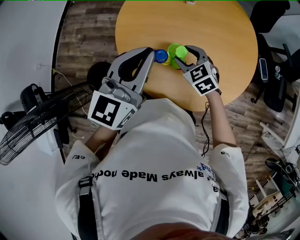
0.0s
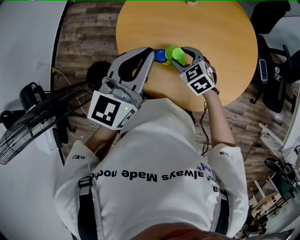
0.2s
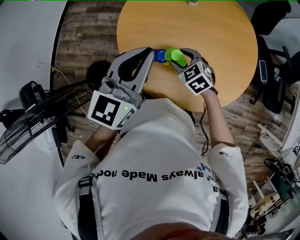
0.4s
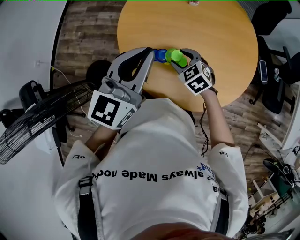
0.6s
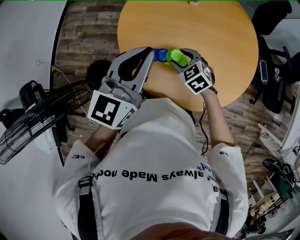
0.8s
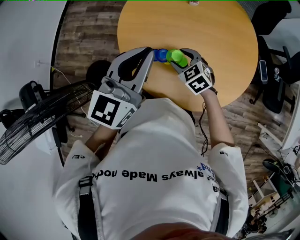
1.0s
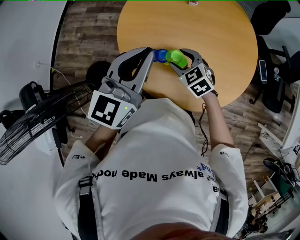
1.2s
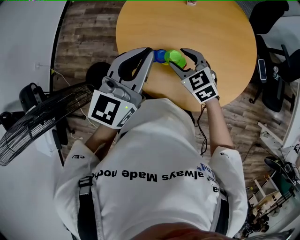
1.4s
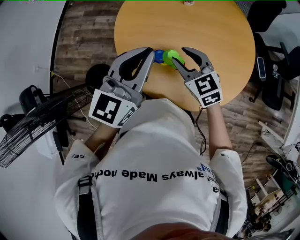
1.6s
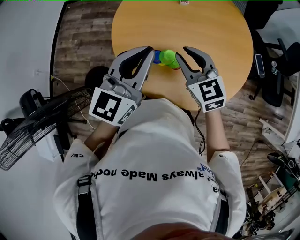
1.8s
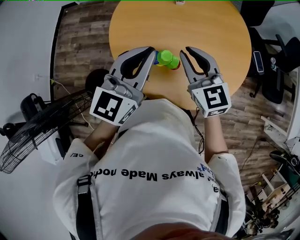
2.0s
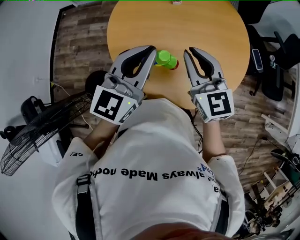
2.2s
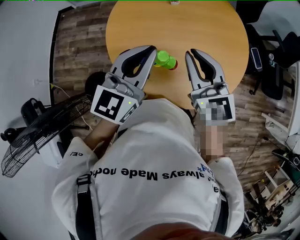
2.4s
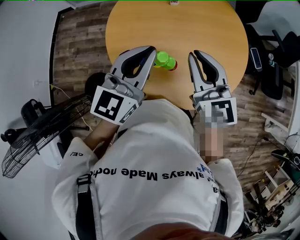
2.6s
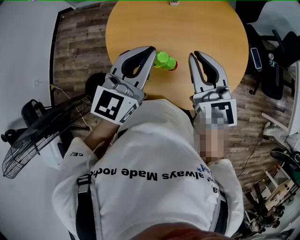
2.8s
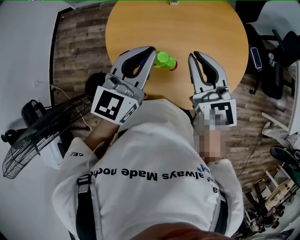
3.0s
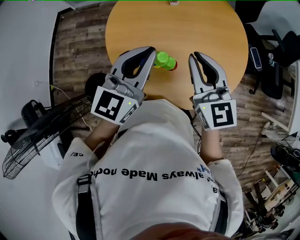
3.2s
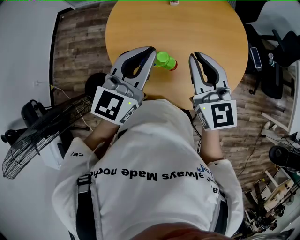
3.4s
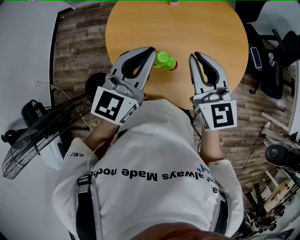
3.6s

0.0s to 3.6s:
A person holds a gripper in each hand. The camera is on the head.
0.0s to 1.8s: The right gripper is displaced upward by roughly 10 cm, rotates approximately 20 degrees, and closes.
1.8s to 3.6s: The right gripper heads upward and to the right, covering about 10 cm, and rotates some 20 degrees.

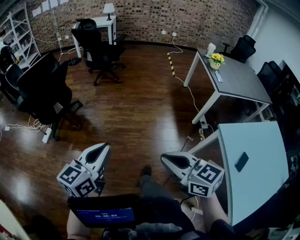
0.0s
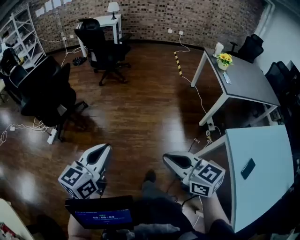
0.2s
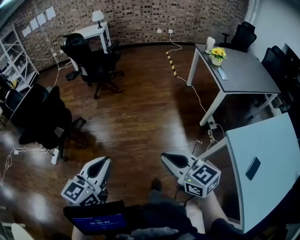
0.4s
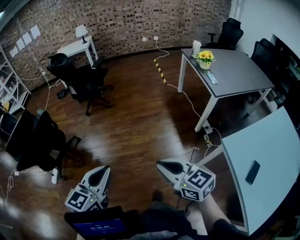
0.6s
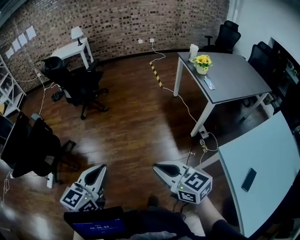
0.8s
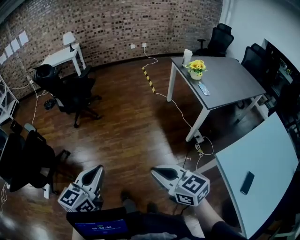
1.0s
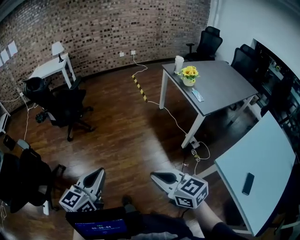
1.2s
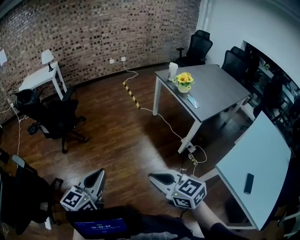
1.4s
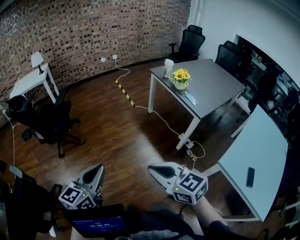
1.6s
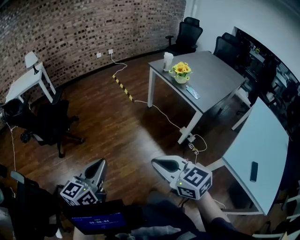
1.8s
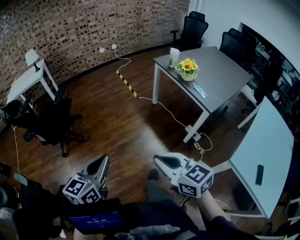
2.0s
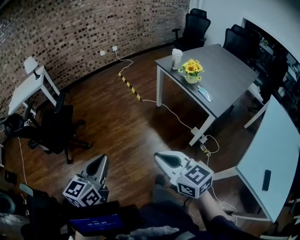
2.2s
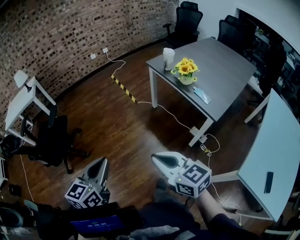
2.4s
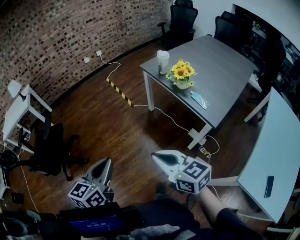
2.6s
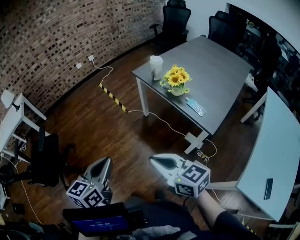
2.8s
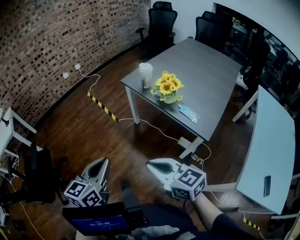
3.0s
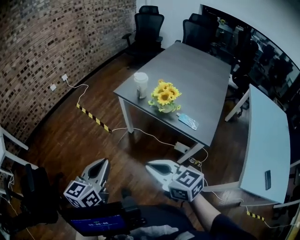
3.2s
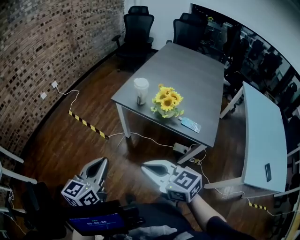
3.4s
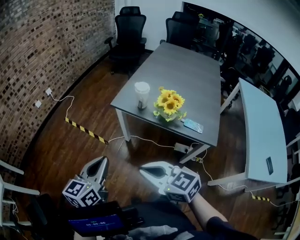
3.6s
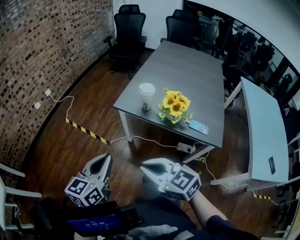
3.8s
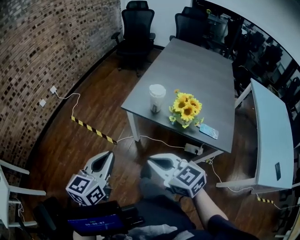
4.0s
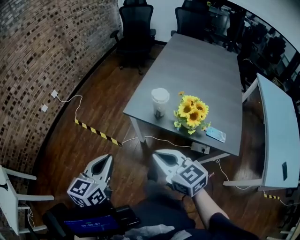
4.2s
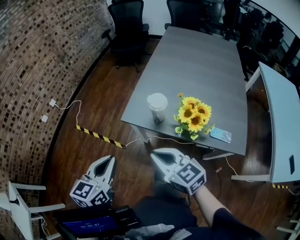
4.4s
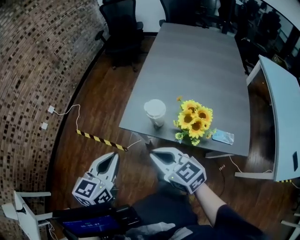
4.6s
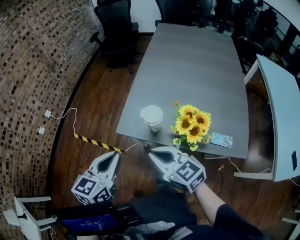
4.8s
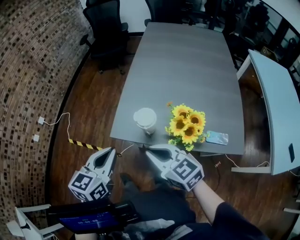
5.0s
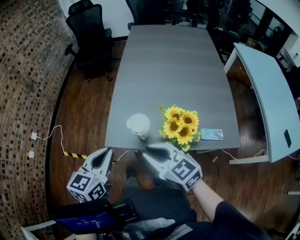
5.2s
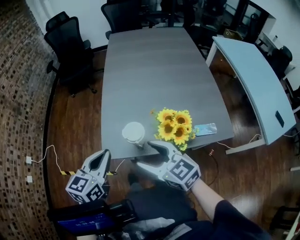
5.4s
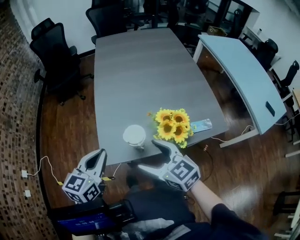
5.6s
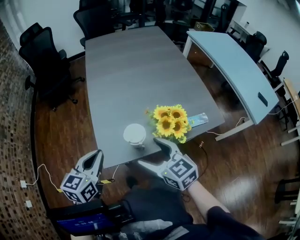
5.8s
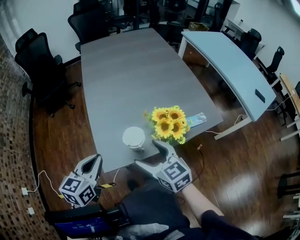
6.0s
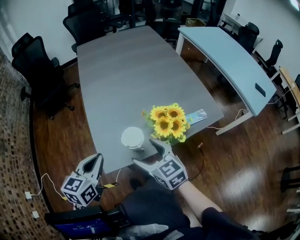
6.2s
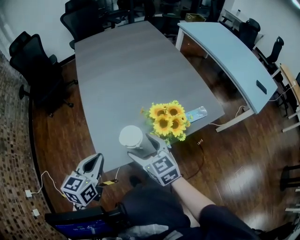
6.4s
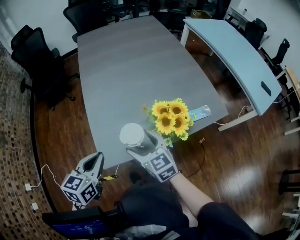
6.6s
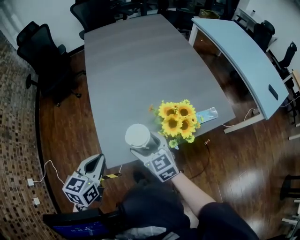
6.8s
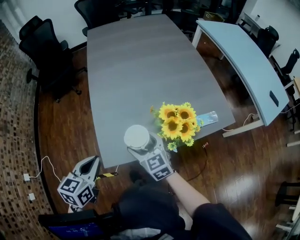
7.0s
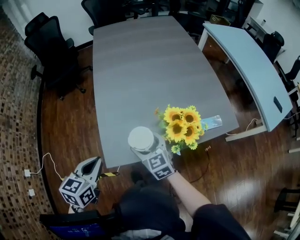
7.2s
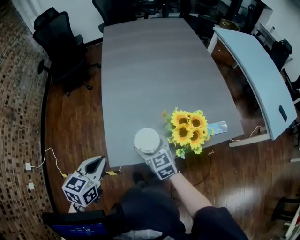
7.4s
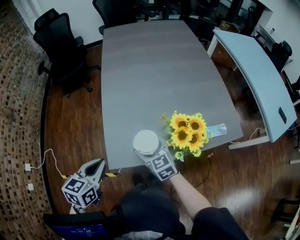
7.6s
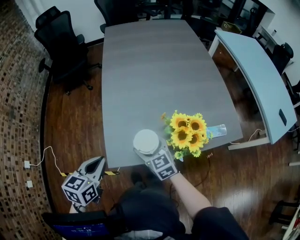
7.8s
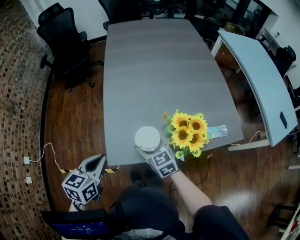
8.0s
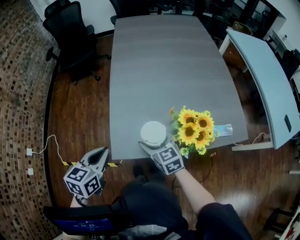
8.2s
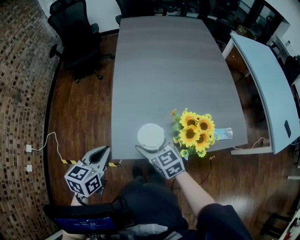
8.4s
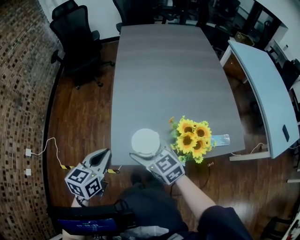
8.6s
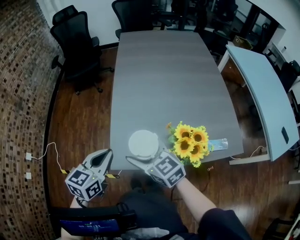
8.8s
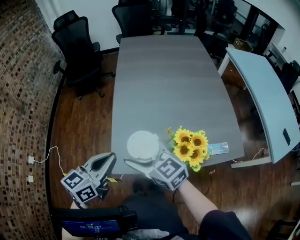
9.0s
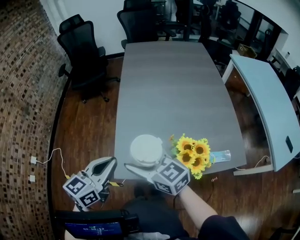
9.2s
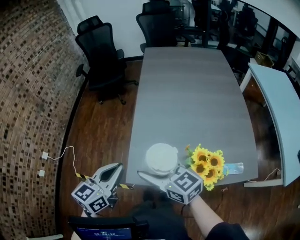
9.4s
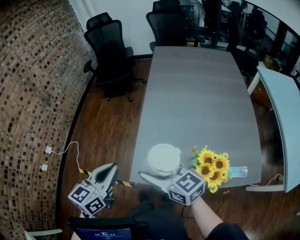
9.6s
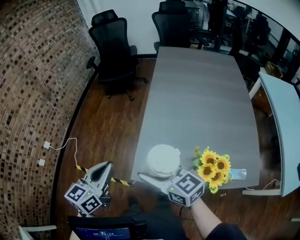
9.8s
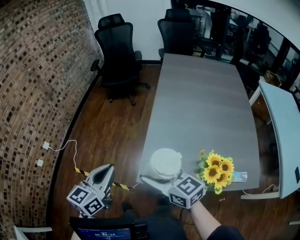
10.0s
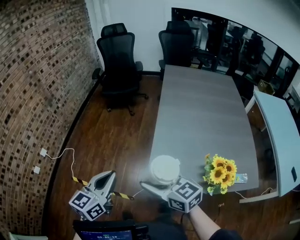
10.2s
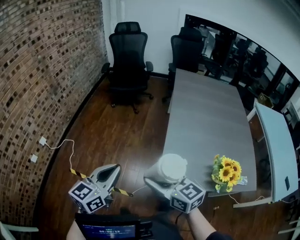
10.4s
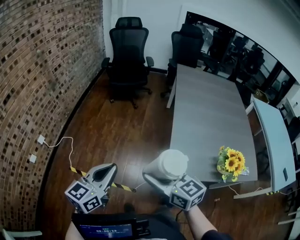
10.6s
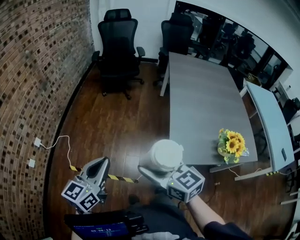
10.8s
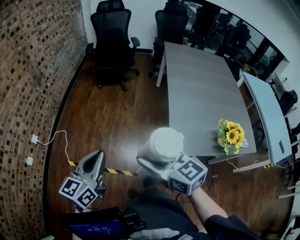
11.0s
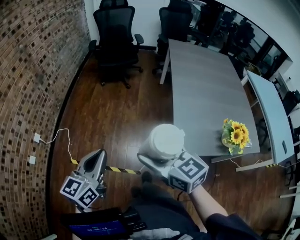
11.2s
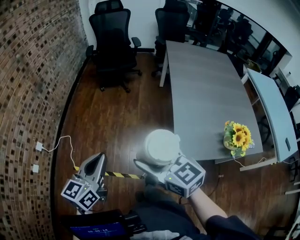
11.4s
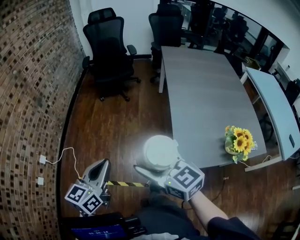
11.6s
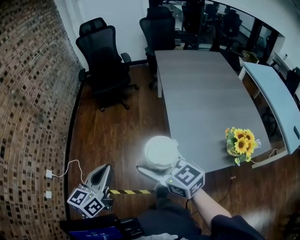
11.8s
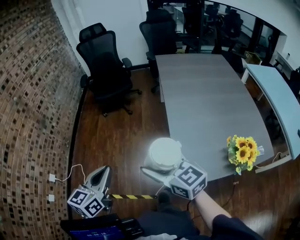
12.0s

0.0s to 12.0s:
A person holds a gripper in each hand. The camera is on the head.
0.0s to 1.6s: The pair of grippers is taken about 50 cm. The right gripper changes its angle by roughly 30 degrees. Meanwhile the left gripper turns by roughly 30 degrees.
1.6s to 3.0s: Both grippers are carried forward, some 50 cm. The right gripper rotates approximately 20 degrees.
3.0s to 4.4s: The pair of grippers is taken forward, about 40 cm. The left gripper swivels roughly 20 degrees; the right gripper rotates roughly 20 degrees.
4.4s to 6.0s: The right gripper shifts by about 15 cm, changes its angle by roughly 50 degrees, and opens; the left gripper moves approximately 25 cm, and turns by about 40 degrees.
6.0s to 7.6s: The left gripper ends up roughly 5 cm from where it was. The right gripper moves downward and forward, roughly 15 cm.
7.6s to 9.0s: The left gripper is displaced upward and to the right by about 10 cm, and changes its angle by about 20 degrees; the right gripper moves upward, some 15 cm, and turns by approximately 20 degrees.
9.0s to 10.4s: Both grippers travel together to the left, approximately 20 cm. The left gripper changes its angle by roughly 20 degrees.
10.4s to 12.0s: The right gripper travels forward by approximately 10 cm, and reaches some 15 cm to the left, then returns. The left gripper moves forward and to the left, approximately 15 cm.

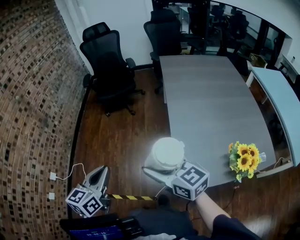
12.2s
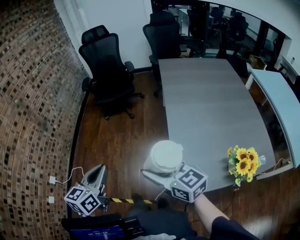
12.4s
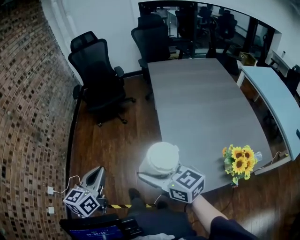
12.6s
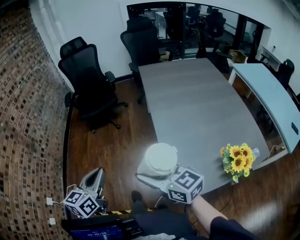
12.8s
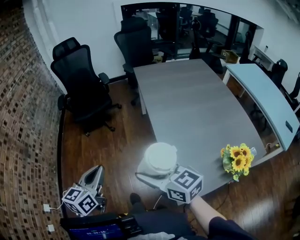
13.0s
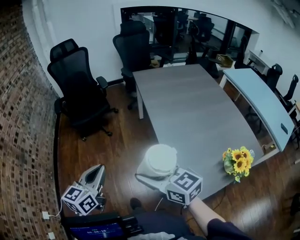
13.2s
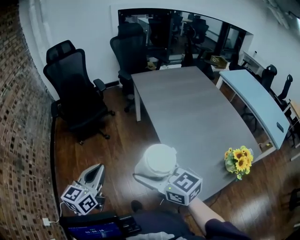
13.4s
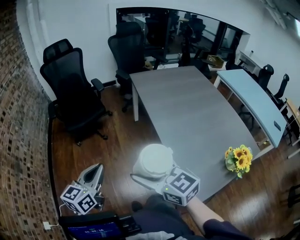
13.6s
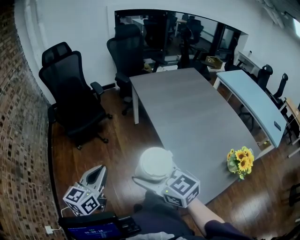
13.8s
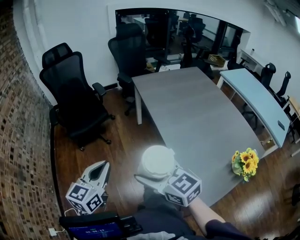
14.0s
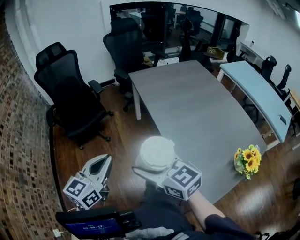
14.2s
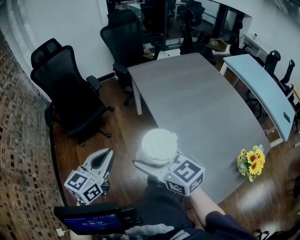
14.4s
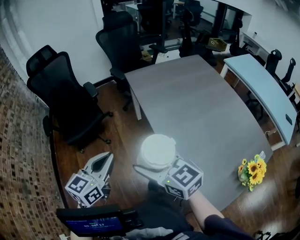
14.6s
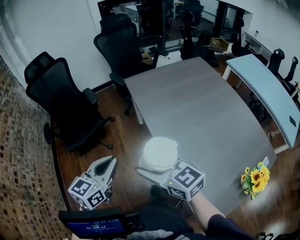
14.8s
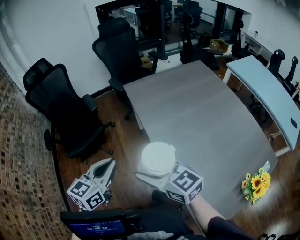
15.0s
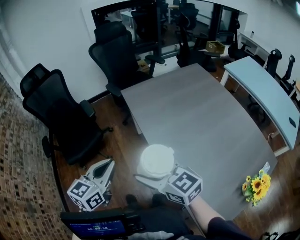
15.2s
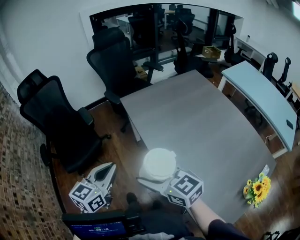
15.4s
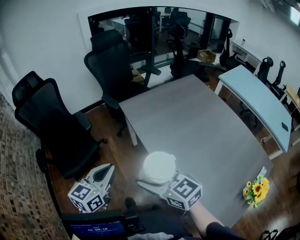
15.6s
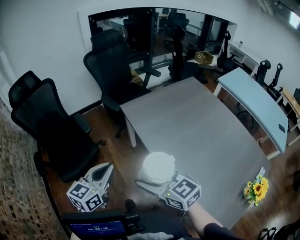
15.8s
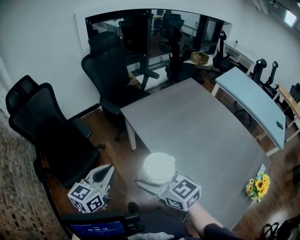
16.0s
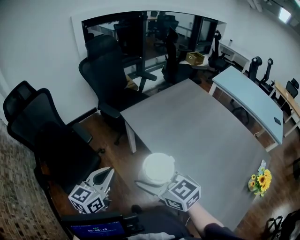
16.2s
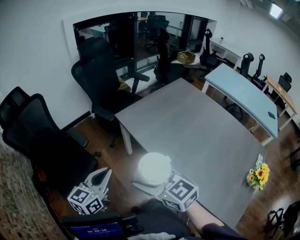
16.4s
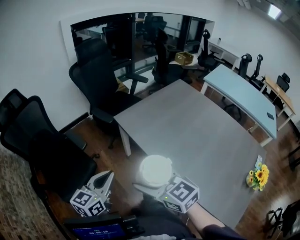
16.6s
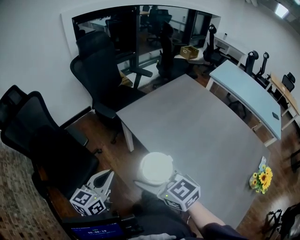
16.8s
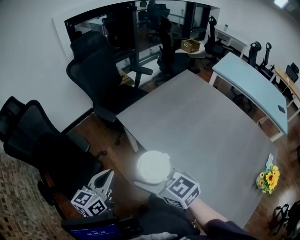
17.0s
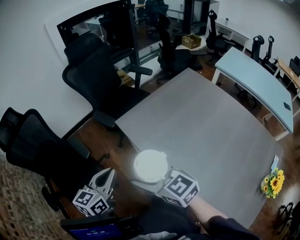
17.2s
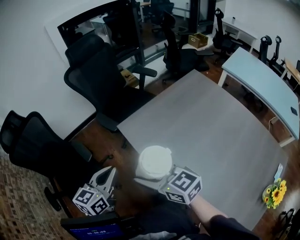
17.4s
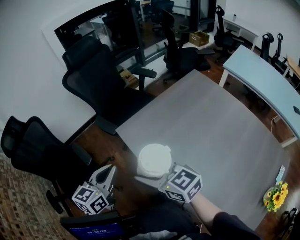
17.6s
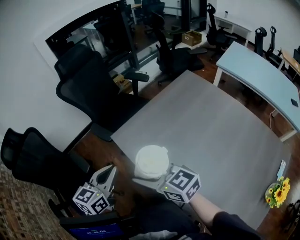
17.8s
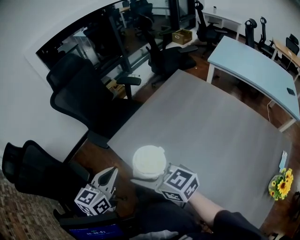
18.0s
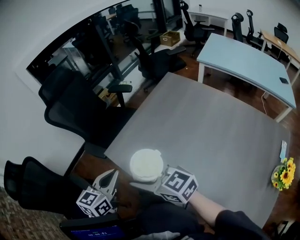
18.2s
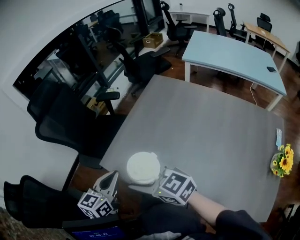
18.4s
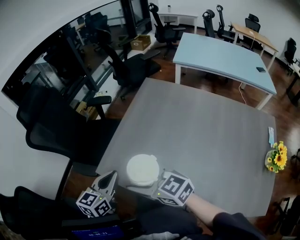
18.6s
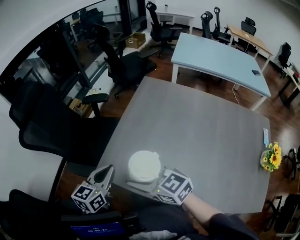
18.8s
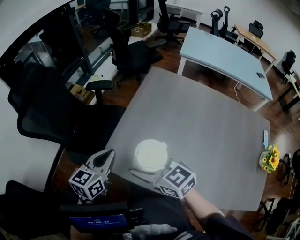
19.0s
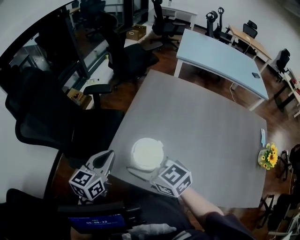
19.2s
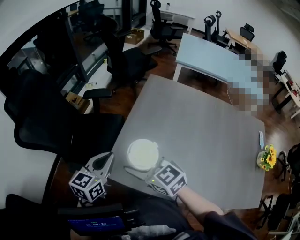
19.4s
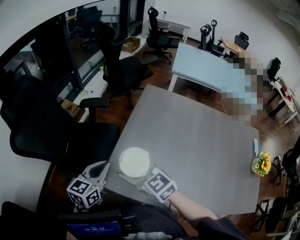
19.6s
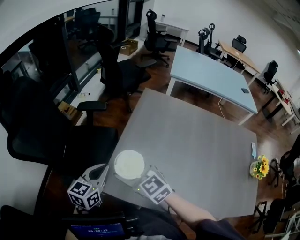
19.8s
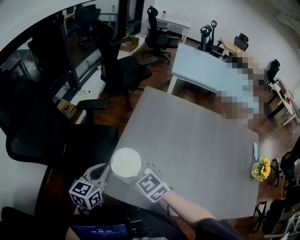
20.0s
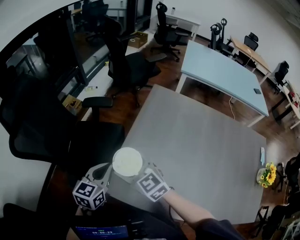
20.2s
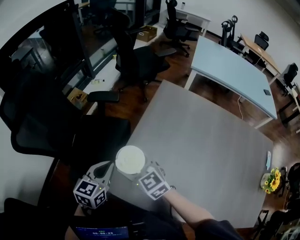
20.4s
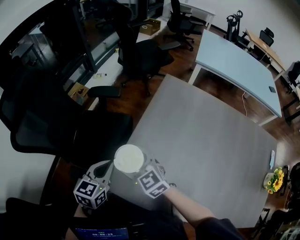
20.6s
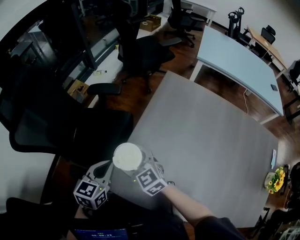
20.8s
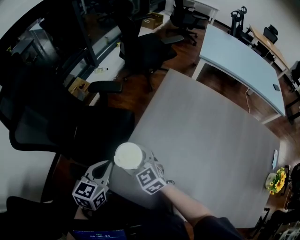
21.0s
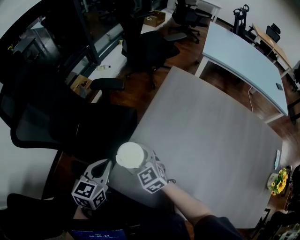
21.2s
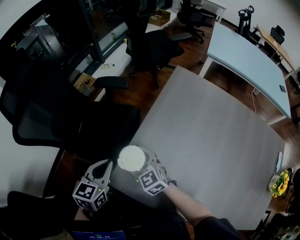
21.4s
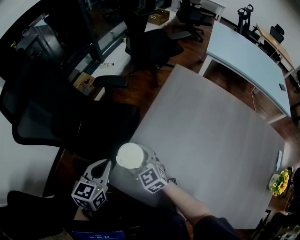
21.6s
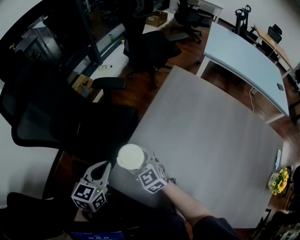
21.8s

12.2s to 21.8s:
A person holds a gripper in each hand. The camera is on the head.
12.2s to 13.8s: The right gripper moves forward and to the left, approximately 20 cm. Meanwhile the left gripper travels forward by about 25 cm, and swivels about 20 degrees.
13.8s to 15.4s: Both grippers move forward, some 30 cm.
15.4s to 17.0s: Both grippers move forward and to the left, approximately 20 cm.
17.0s to 18.6s: The grippers both shift forward and to the right by some 30 cm. The left gripper swivels roughly 30 degrees.
18.6s to 20.2s: Both grippers move forward and to the left, roughly 20 cm. The right gripper swivels about 20 degrees.
20.2s to 21.8s: The right gripper goes approximately 15 cm downward, while the left gripper changes place by approximately 5 cm.
